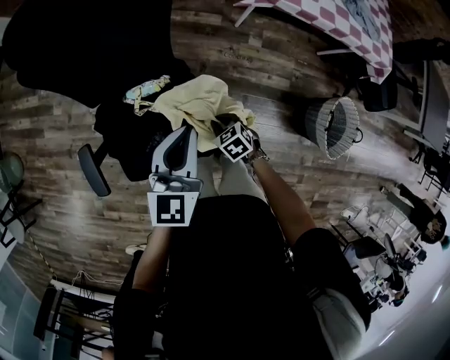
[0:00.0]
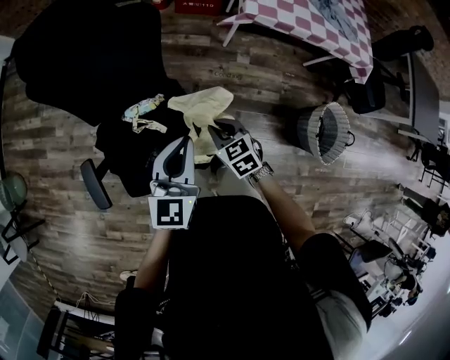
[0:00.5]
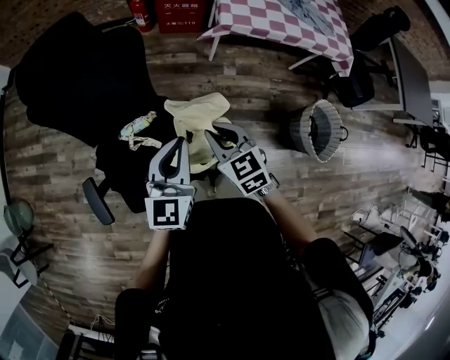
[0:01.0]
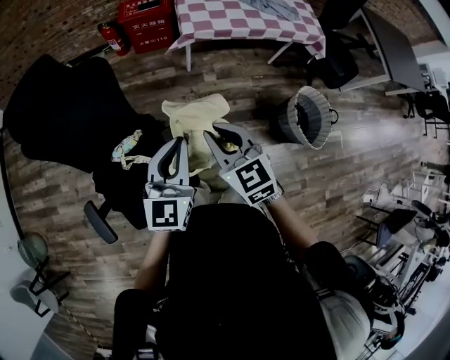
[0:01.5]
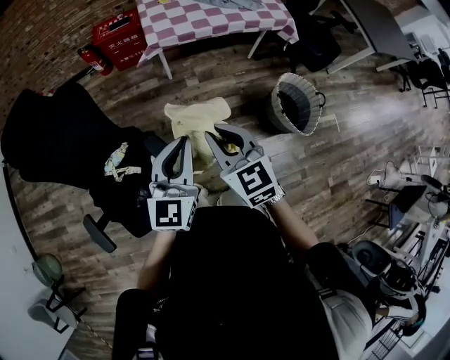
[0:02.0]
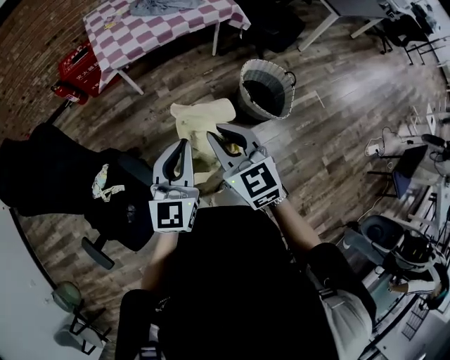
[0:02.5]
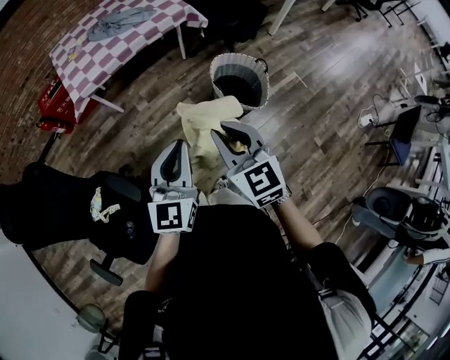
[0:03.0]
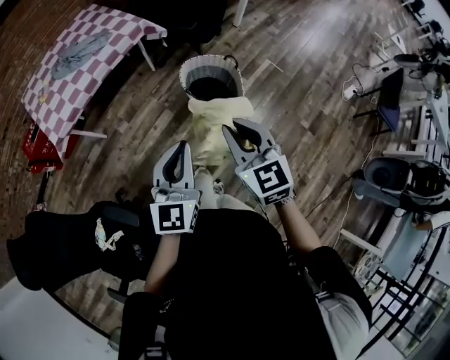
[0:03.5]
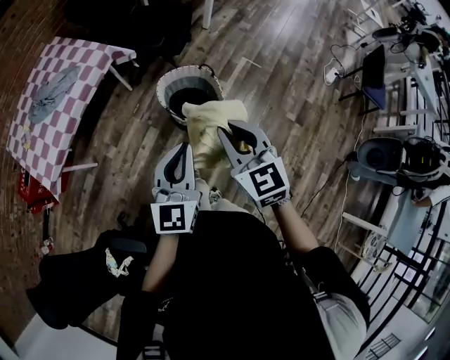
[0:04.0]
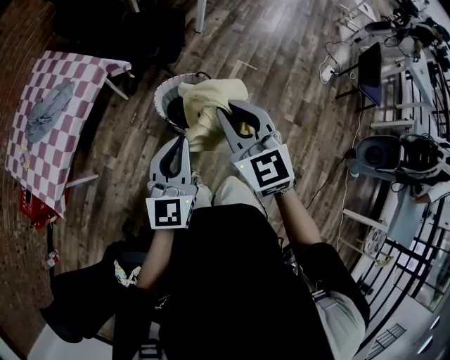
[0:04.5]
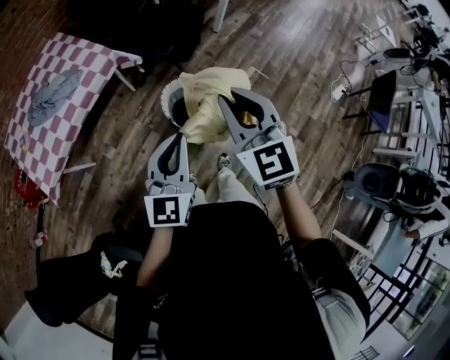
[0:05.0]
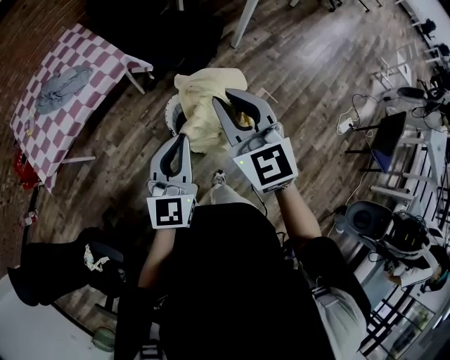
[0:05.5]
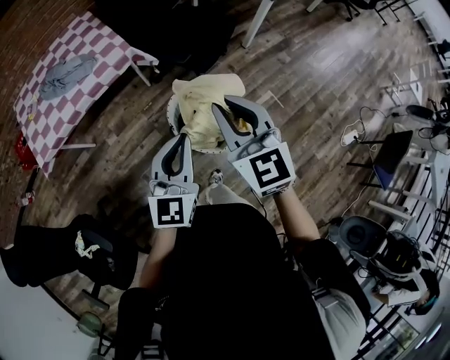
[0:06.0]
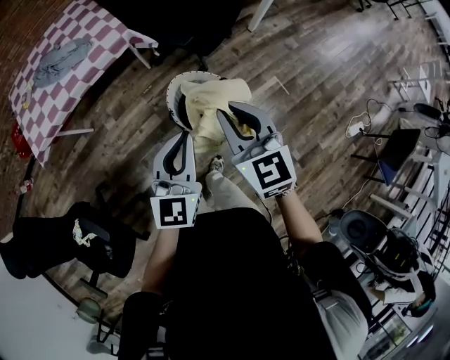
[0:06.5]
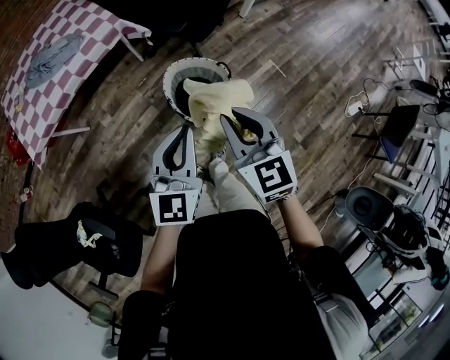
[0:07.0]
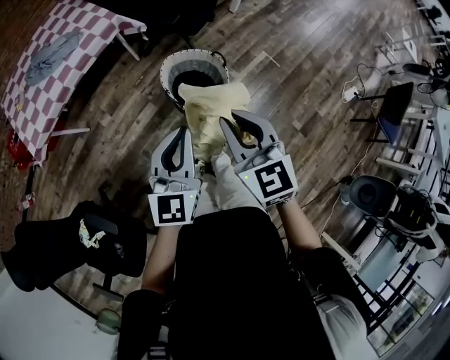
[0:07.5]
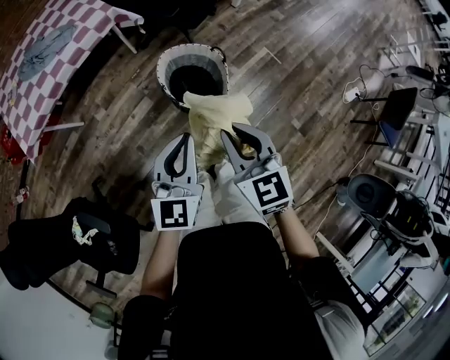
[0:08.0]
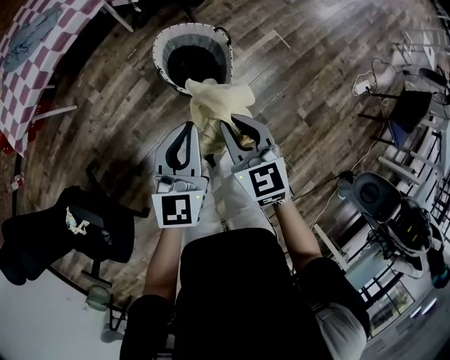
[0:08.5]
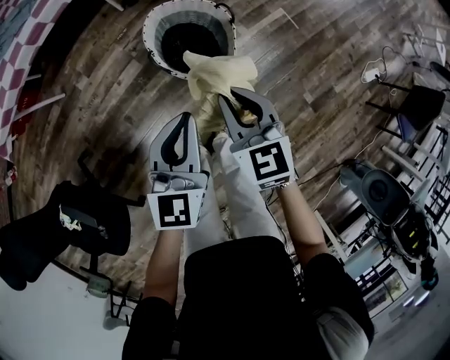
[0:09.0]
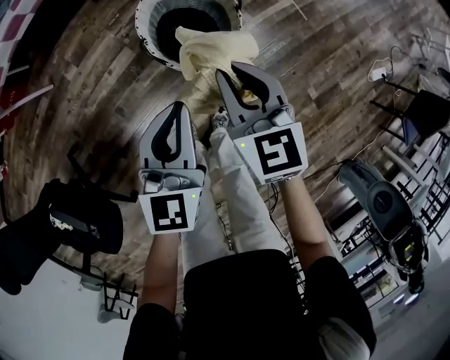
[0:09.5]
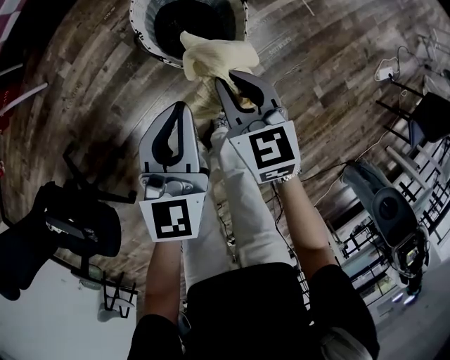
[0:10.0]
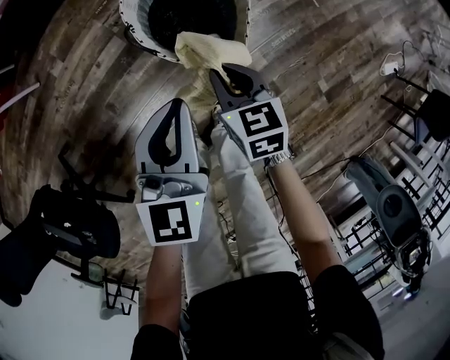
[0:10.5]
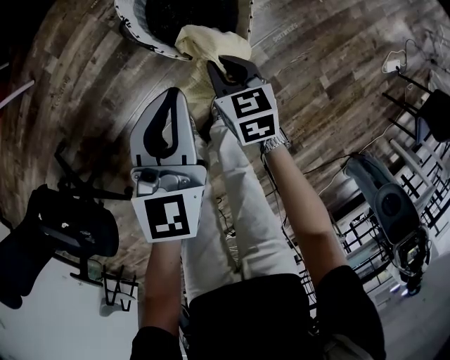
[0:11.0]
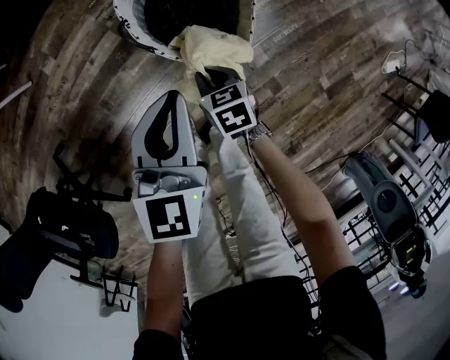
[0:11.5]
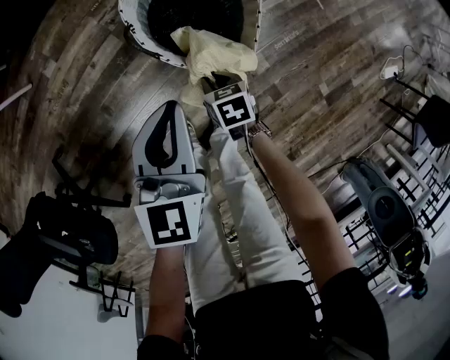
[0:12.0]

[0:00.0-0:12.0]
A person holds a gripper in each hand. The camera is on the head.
0:00.0 to 0:02.0: The right gripper heads upward, covering roughly 35 cm, and angles its fingers upward, by roughly 40 degrees. Meanwhile the left gripper changes place by some 25 cm, and rotates roughly 30 degrees.
0:02.0 to 0:04.0: The two grippers travel together, approximately 50 cm. The right gripper swivels roughly 50 degrees, while the left gripper turns by about 40 degrees.
0:04.0 to 0:06.0: The two grippers go approximately 20 cm forward. The left gripper changes its angle by some 20 degrees. Meanwhile the right gripper changes its angle by roughly 20 degrees.
0:06.0 to 0:08.0: Both grippers move backward and downward, some 20 cm.
0:08.0 to 0:10.0: Both grippers travel together downward, about 25 cm.
0:10.0 to 0:12.0: The right gripper moves downward, about 25 cm, and turns by some 30 degrees. Meanwhile the left gripper goes roughly 10 cm downward.

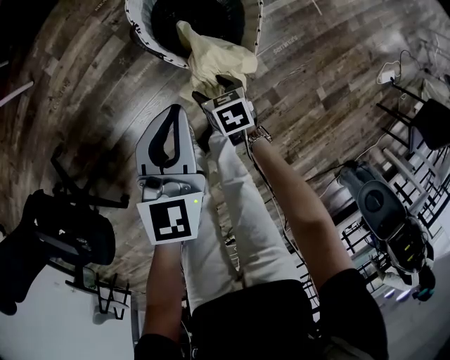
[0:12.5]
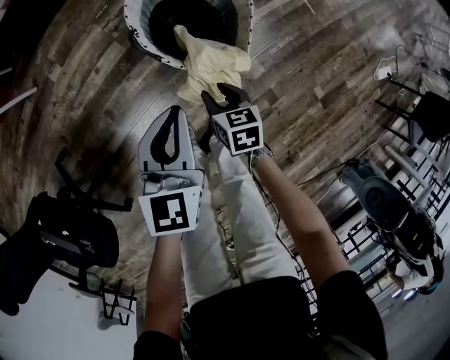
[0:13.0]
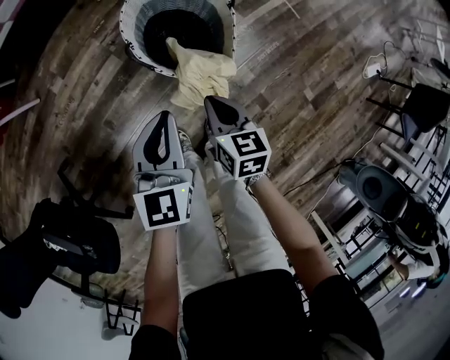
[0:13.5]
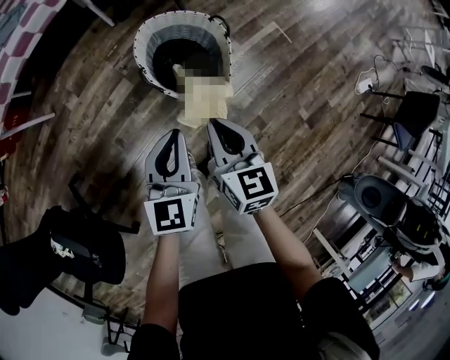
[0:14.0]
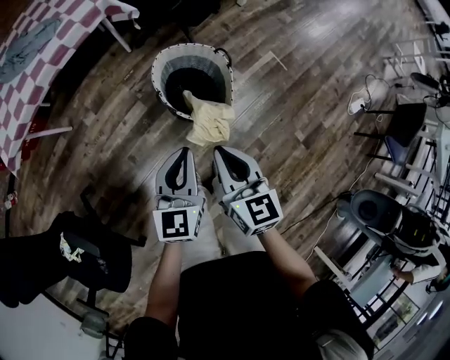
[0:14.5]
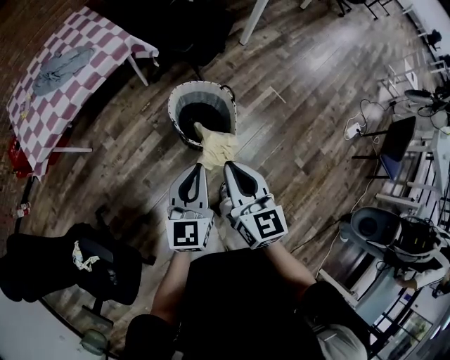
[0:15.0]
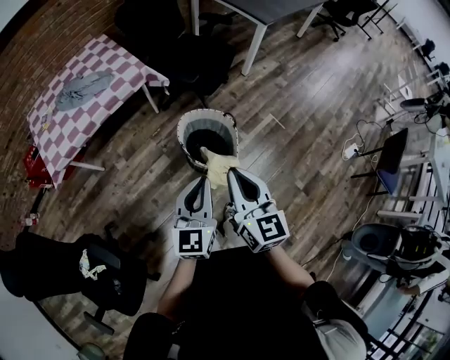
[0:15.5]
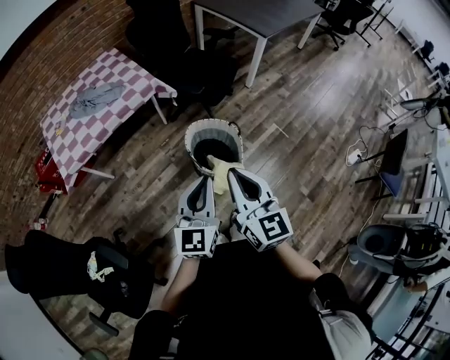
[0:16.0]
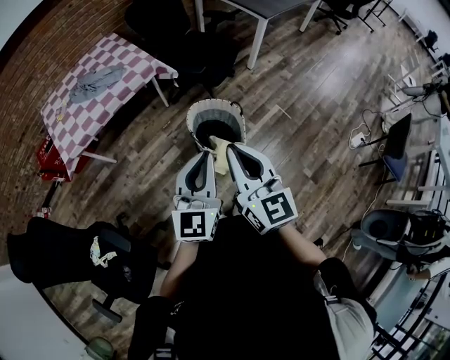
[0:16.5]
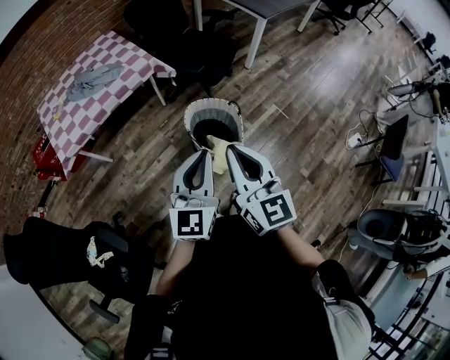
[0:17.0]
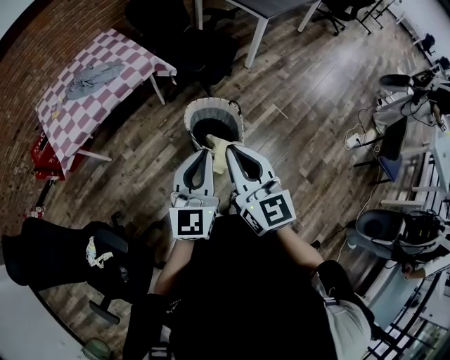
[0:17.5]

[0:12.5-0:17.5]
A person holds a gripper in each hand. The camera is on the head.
0:12.5 to 0:15.0: The right gripper moves upward, approximately 50 cm, points its fingers about 50 degrees further upward, and closes, while the left gripper goes some 30 cm upward.
0:15.0 to 0:17.5: The two grippers go approximately 15 cm upward.

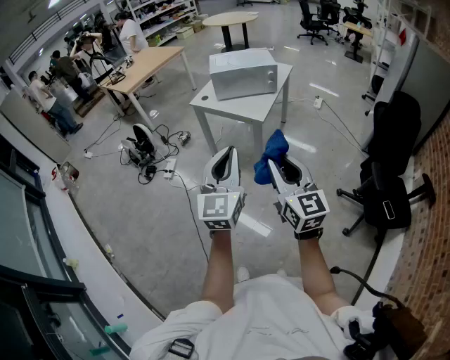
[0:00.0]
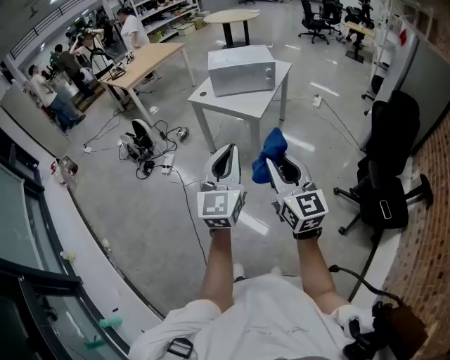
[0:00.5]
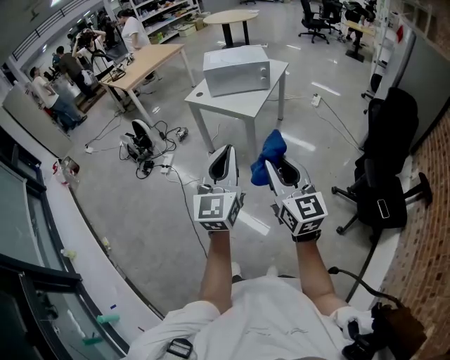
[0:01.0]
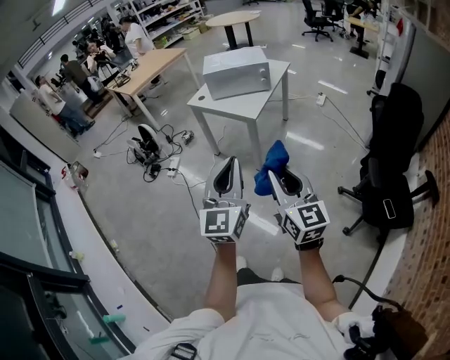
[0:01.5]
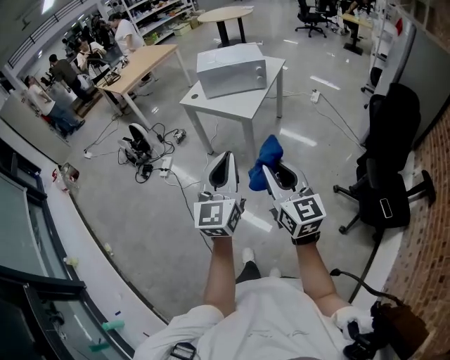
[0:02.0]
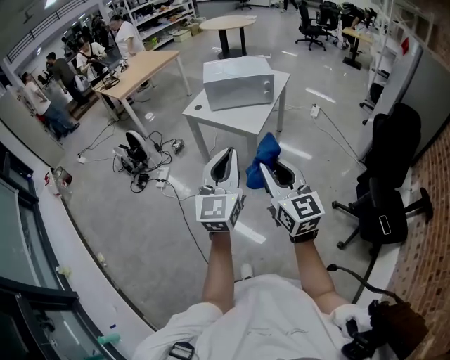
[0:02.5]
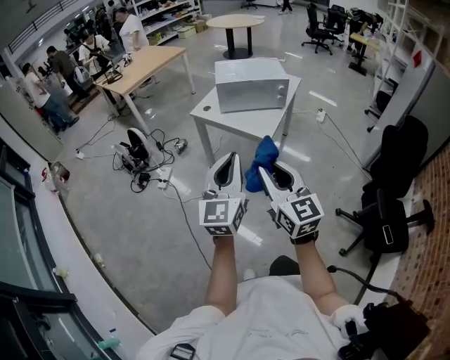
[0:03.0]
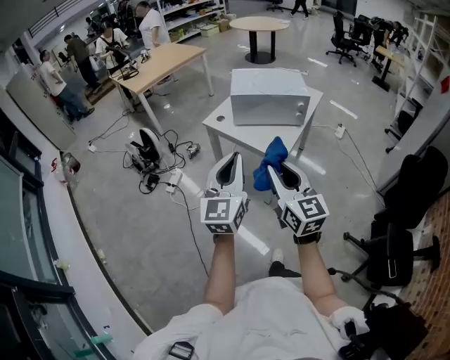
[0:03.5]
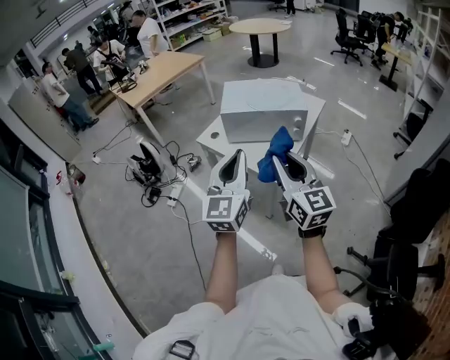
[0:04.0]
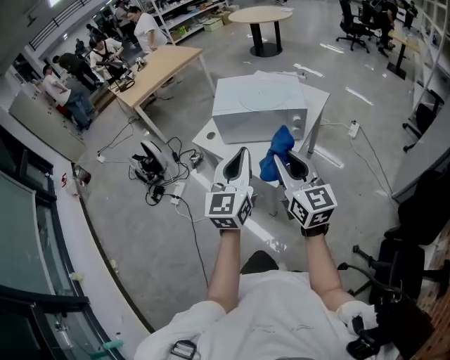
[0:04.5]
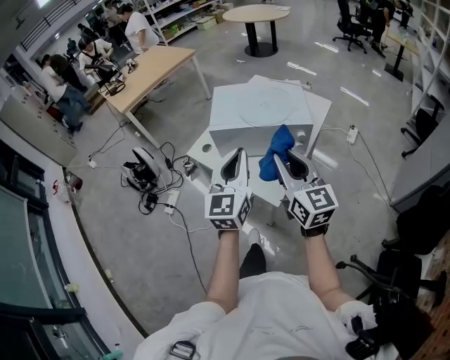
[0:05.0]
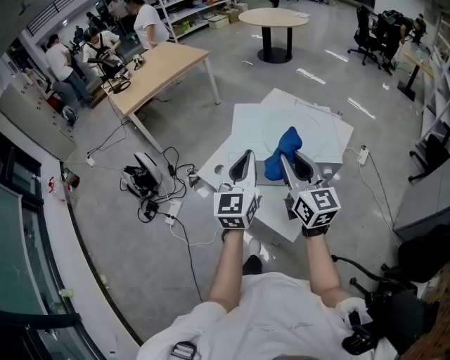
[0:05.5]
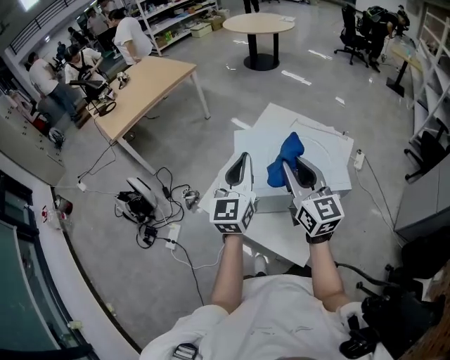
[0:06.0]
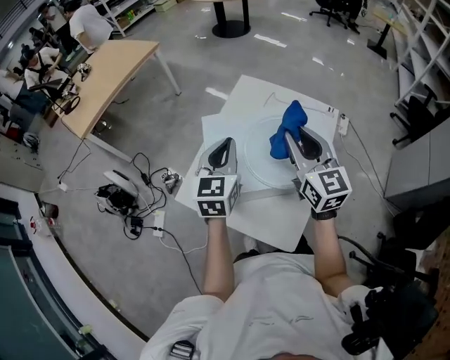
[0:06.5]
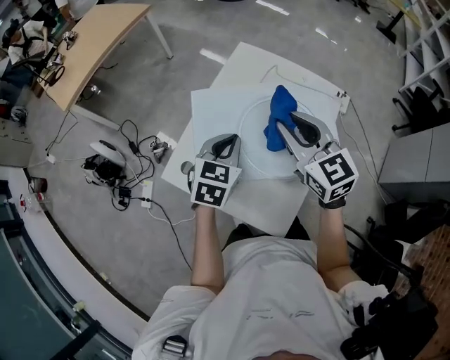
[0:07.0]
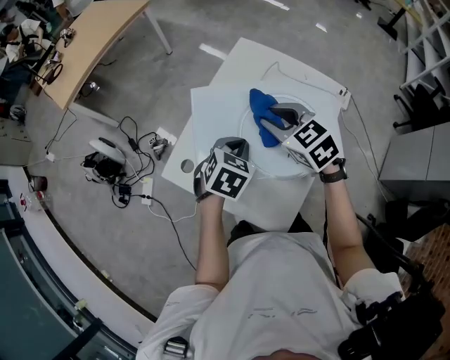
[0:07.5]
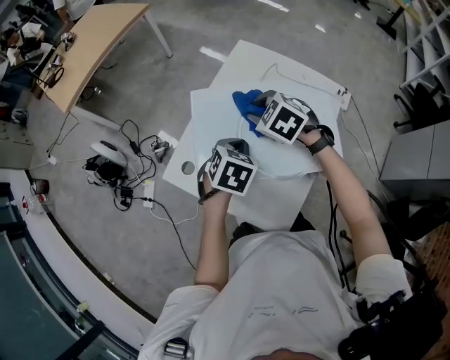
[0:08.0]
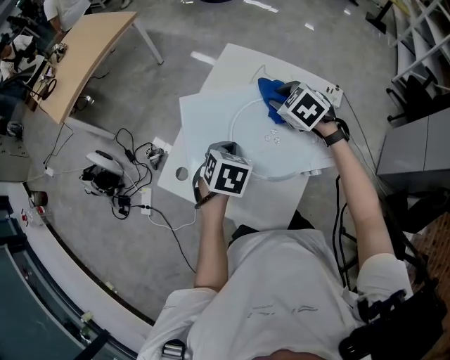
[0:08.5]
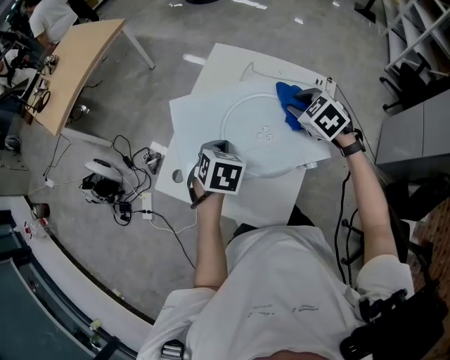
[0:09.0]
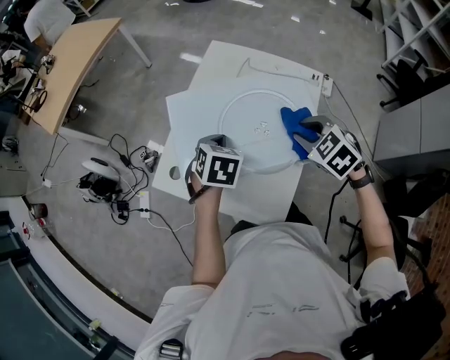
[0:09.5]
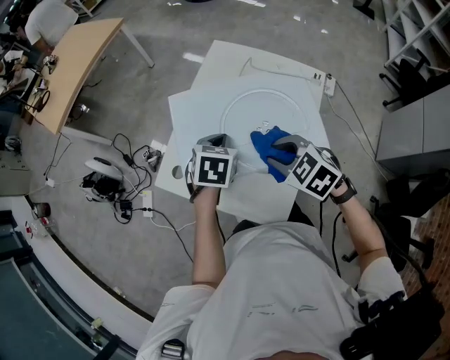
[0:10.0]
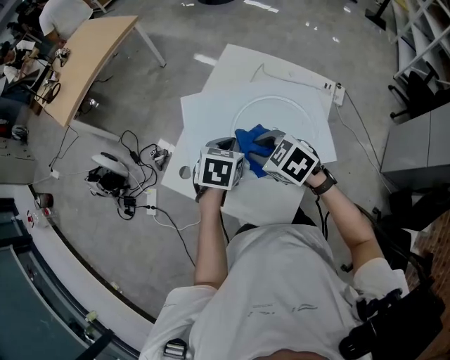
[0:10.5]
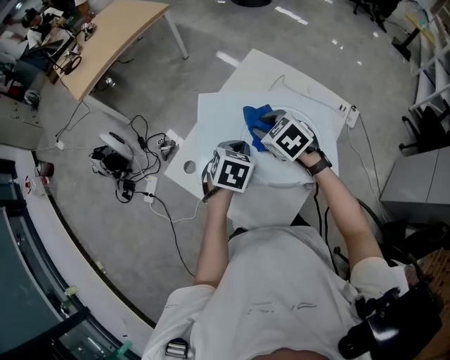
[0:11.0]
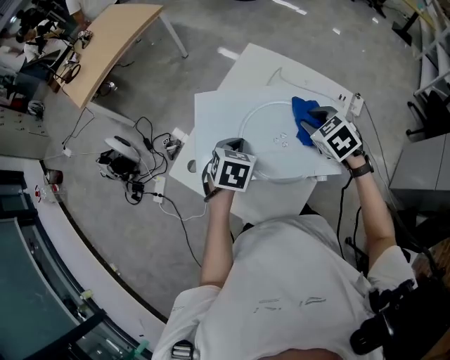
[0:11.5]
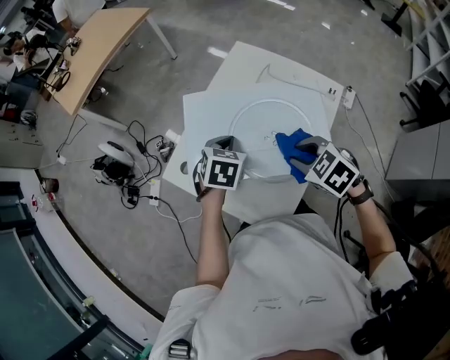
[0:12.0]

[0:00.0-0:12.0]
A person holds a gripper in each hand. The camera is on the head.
0:00.0 to 0:02.0: Both grippers travel together to the right, roughly 5 cm.
0:02.0 to 0:04.0: The grippers both shift forward by some 40 cm.
0:04.0 to 0:06.0: The pair of grippers is taken forward, about 40 cm.
0:06.0 to 0:08.0: The left gripper goes approximately 20 cm downward and to the right, and tilts its fingers some 60 degrees downward; the right gripper goes approximately 25 cm downward and forward, and angles its fingers downward, by some 60 degrees.
0:08.0 to 0:10.0: The right gripper heads backward and to the right, covering roughly 15 cm.
0:10.0 to 0:12.0: The right gripper moves left and right over approximately 15 cm, changing direction 2 times.
